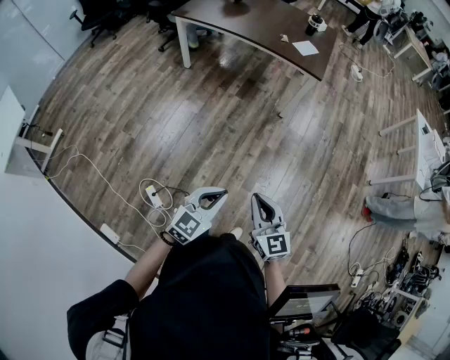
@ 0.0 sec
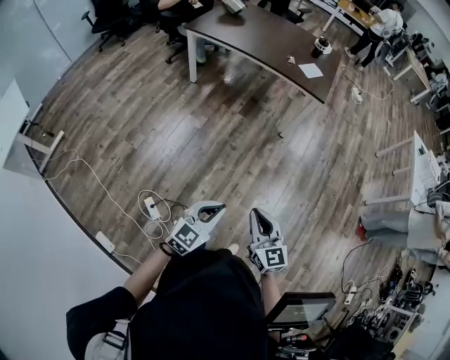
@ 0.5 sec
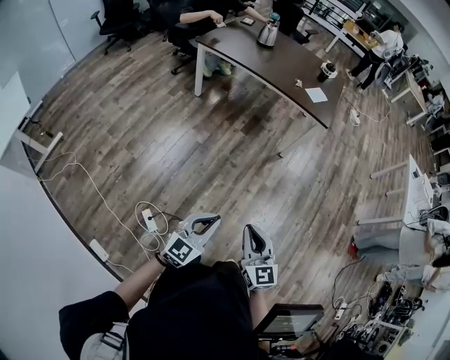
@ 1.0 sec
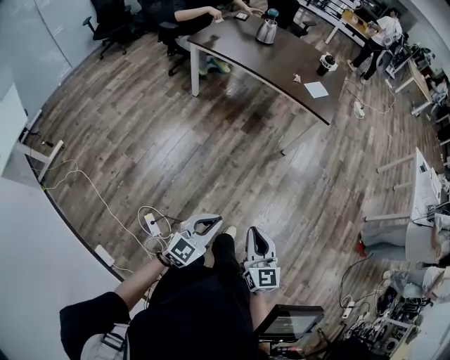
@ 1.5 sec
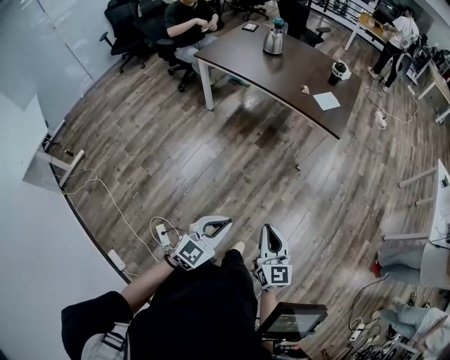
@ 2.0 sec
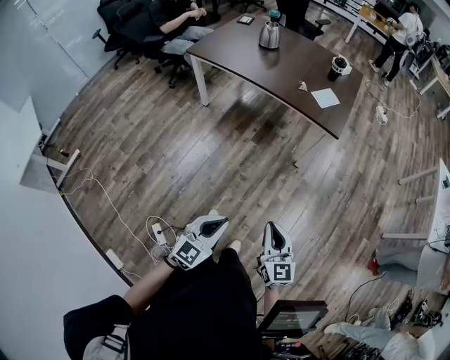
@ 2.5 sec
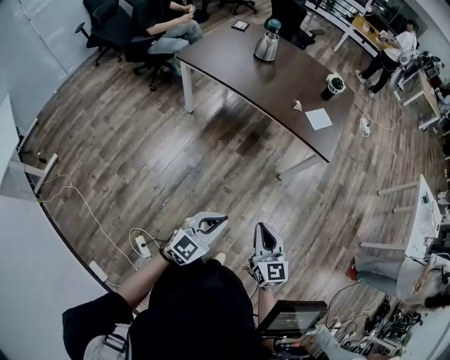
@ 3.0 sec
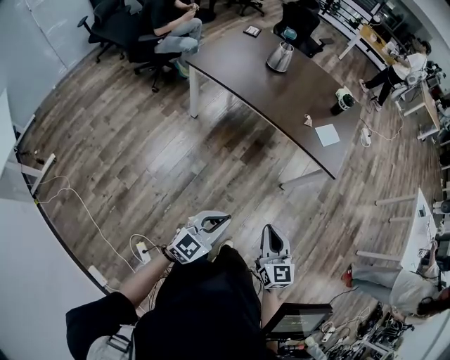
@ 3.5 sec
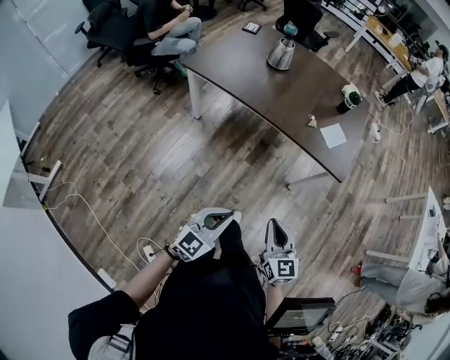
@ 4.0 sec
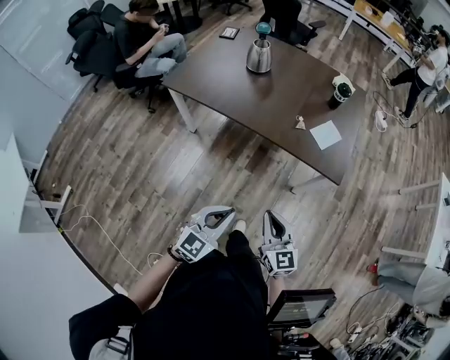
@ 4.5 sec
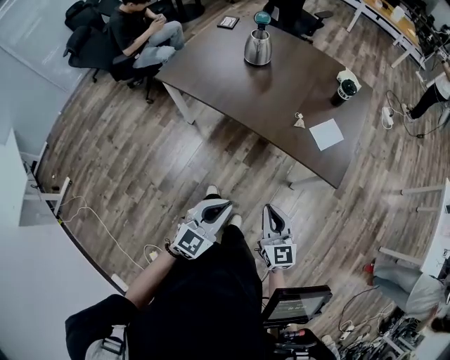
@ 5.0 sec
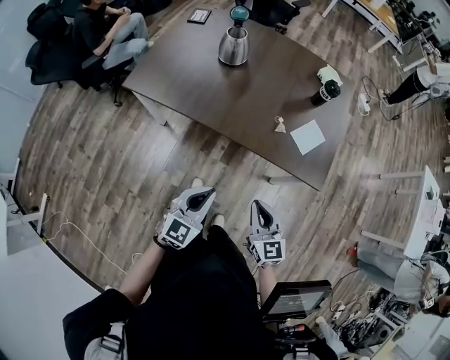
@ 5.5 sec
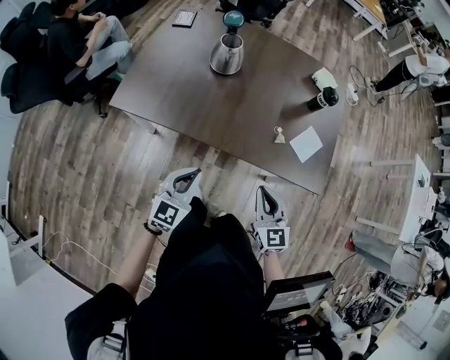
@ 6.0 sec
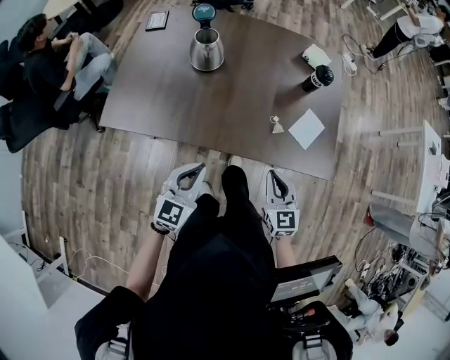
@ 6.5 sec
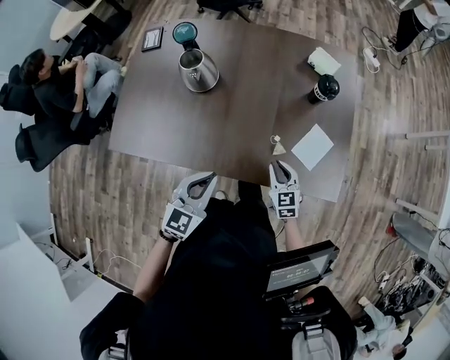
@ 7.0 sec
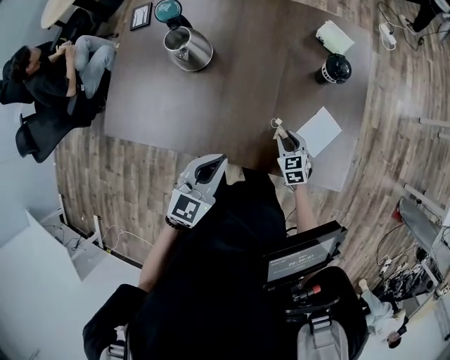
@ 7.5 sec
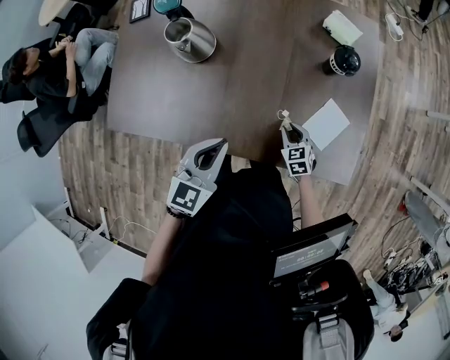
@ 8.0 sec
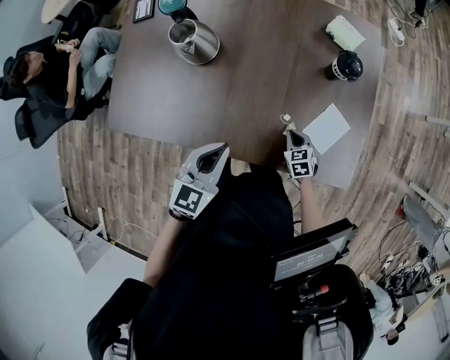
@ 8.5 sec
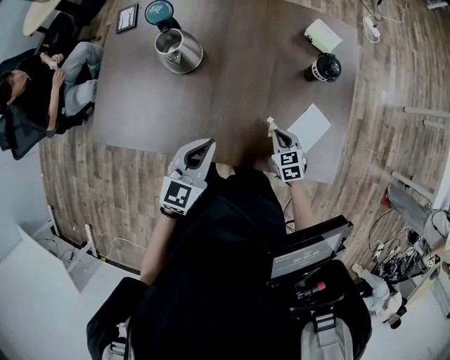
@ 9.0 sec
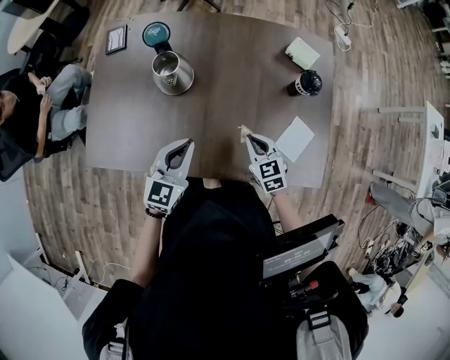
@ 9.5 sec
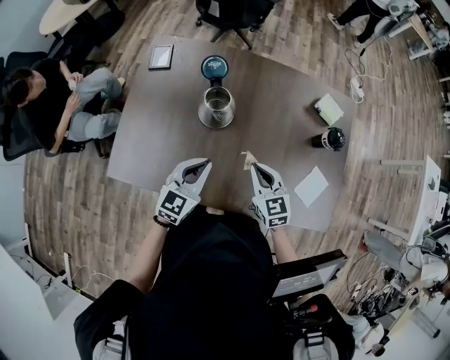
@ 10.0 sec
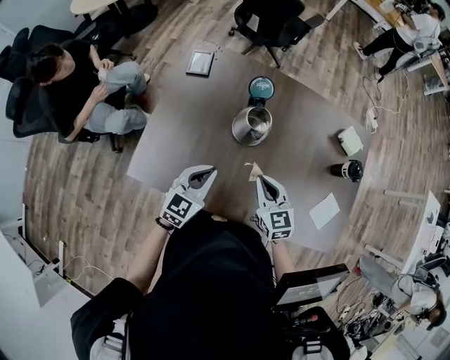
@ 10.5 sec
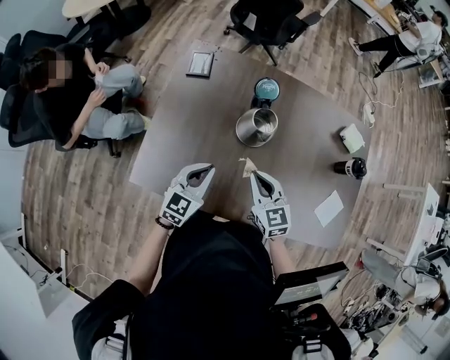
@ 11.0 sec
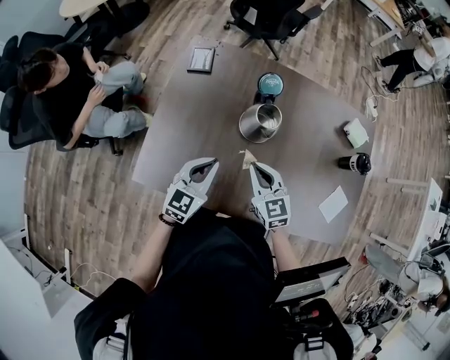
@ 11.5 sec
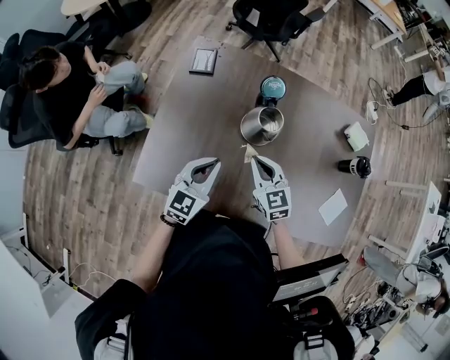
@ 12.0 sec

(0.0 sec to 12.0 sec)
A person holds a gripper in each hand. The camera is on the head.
0.0 sec - 2.0 sec: Both grippers move forward, approximately 15 cm.
2.0 sec - 4.0 sec: The grippers both shift forward and to the left by some 35 cm.
4.0 sec - 6.0 sec: The two grippers go about 40 cm forward.
6.0 sec - 8.0 sec: The right gripper is displaced downward, forward and to the right by about 40 cm, tips its fingers downward by approximately 30 degrees, and opens; the left gripper goes approximately 30 cm forward and to the right.
8.0 sec - 10.0 sec: The right gripper heads upward and to the left, covering some 30 cm, and closes up, while the left gripper travels to the left and forward by some 20 cm.
10.0 sec - 12.0 sec: The two grippers go some 20 cm to the left.

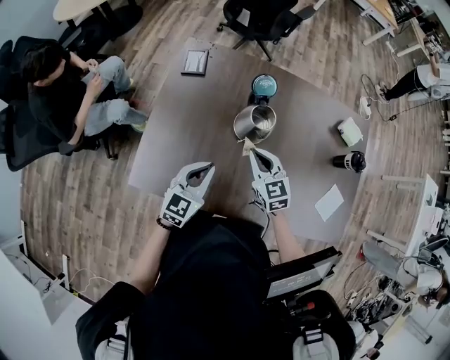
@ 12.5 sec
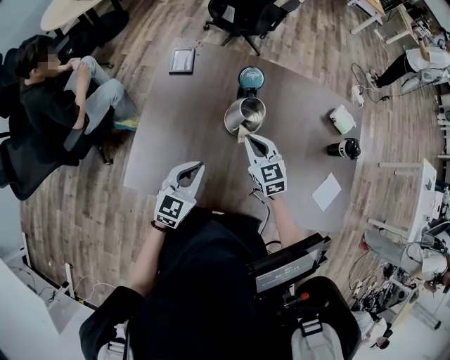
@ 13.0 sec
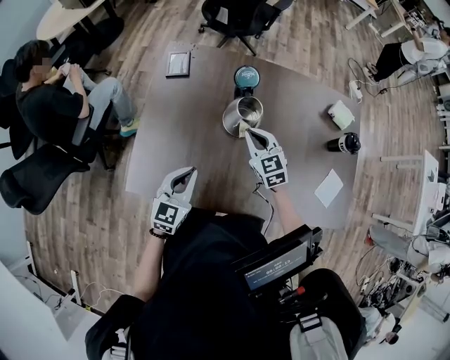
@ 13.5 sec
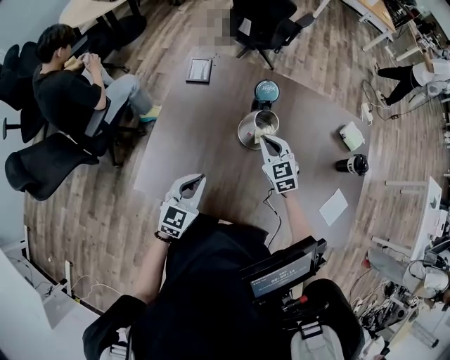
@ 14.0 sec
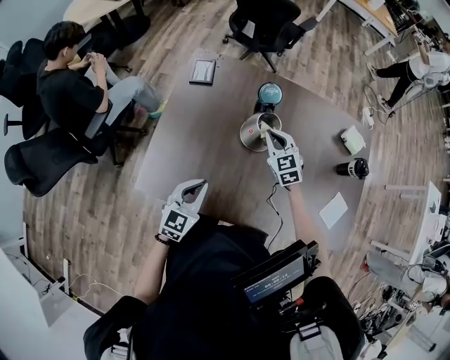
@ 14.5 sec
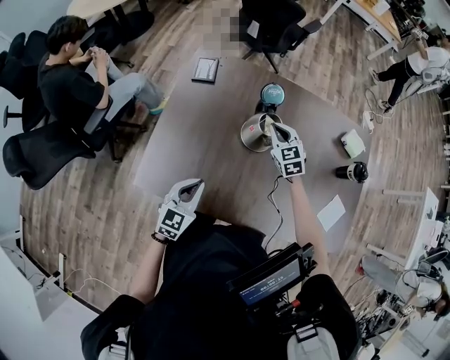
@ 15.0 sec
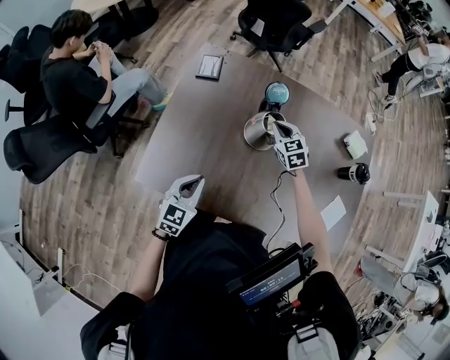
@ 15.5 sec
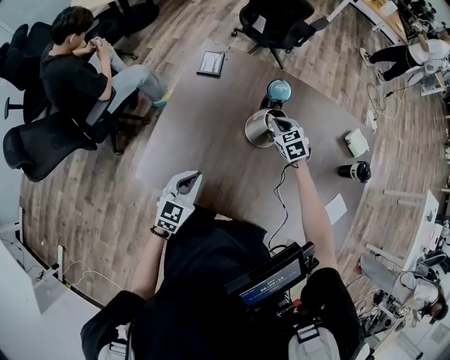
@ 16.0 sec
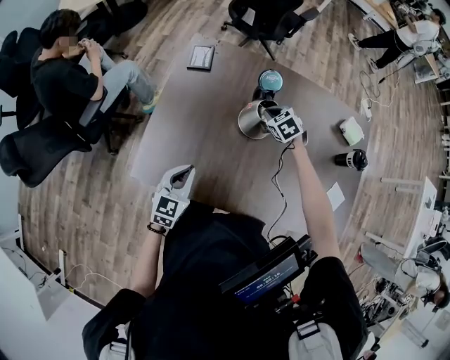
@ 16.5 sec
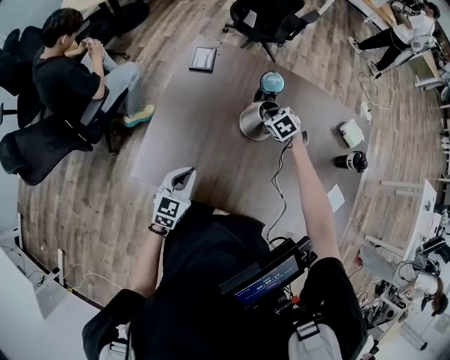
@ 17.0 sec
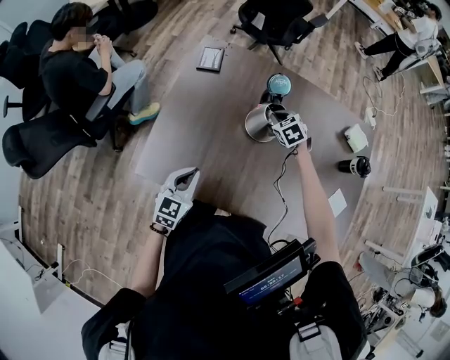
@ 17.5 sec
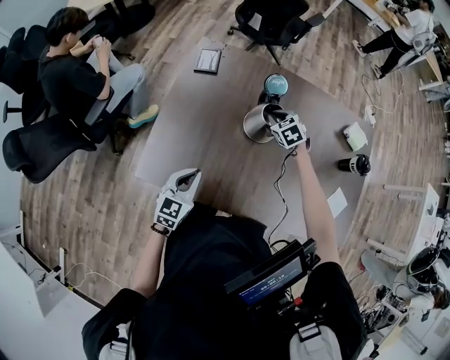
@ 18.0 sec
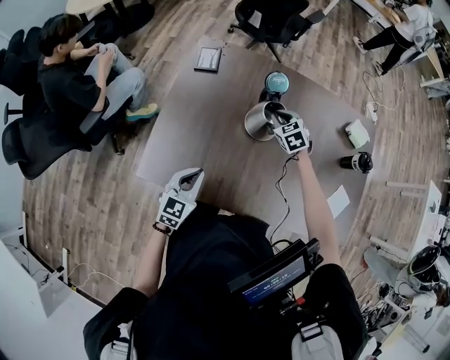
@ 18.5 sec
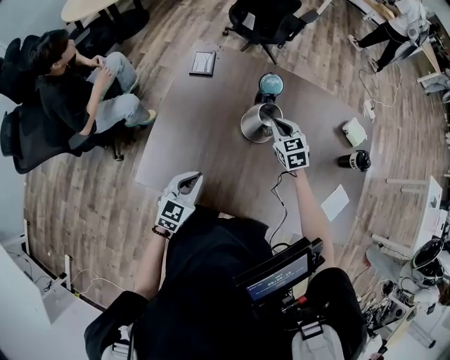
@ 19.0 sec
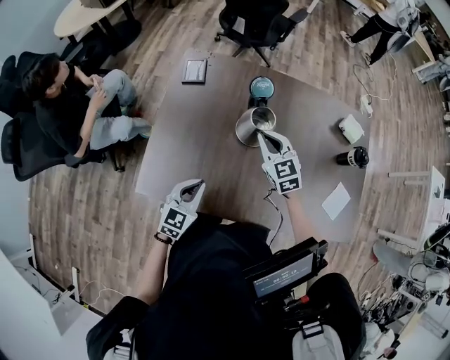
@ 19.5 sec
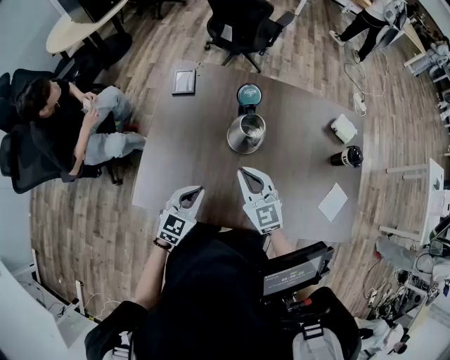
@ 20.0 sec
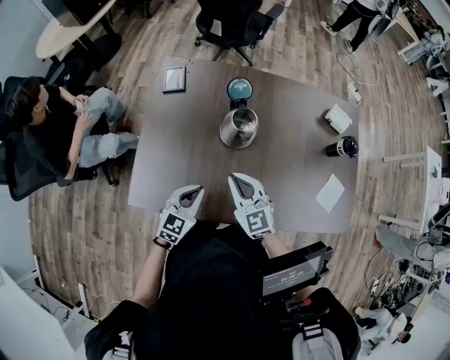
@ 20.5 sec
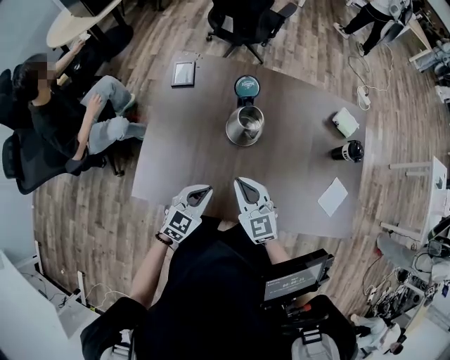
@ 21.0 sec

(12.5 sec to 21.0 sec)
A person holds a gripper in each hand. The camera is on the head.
12.5 sec - 14.5 sec: The left gripper changes place by approximately 5 cm; the right gripper goes about 10 cm forward.
14.5 sec - 16.5 sec: The right gripper moves downward and forward, about 10 cm, and turns by approximately 30 degrees.
16.5 sec - 19.0 sec: The right gripper heads upward, covering some 5 cm, and changes its angle by approximately 20 degrees.
19.0 sec - 21.0 sec: The left gripper goes roughly 10 cm to the right, while the right gripper shifts some 20 cm backward.

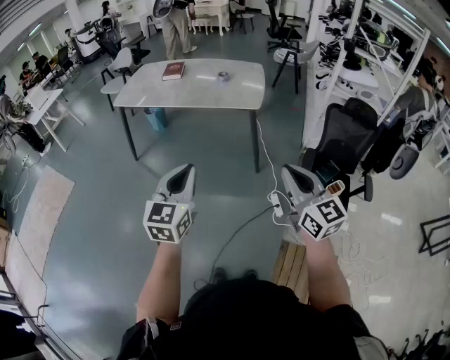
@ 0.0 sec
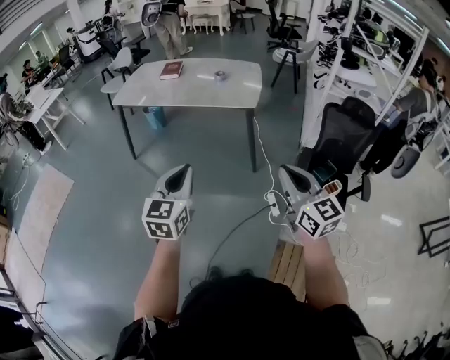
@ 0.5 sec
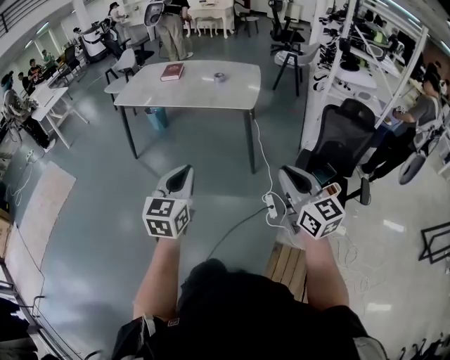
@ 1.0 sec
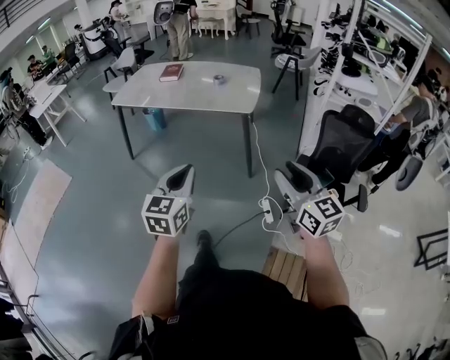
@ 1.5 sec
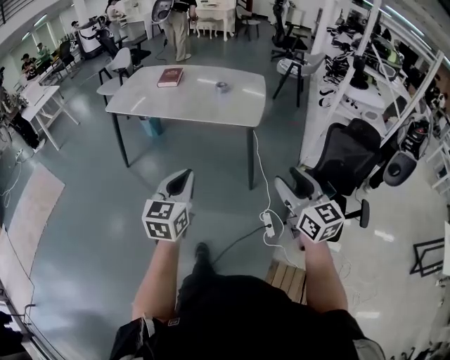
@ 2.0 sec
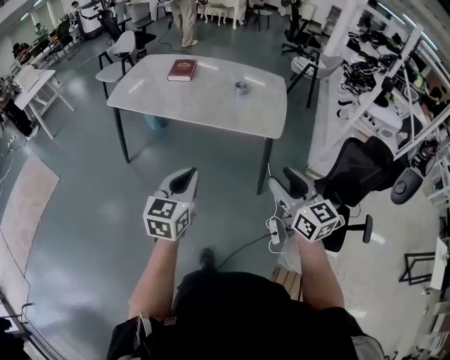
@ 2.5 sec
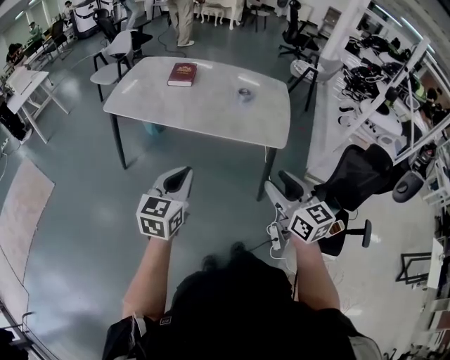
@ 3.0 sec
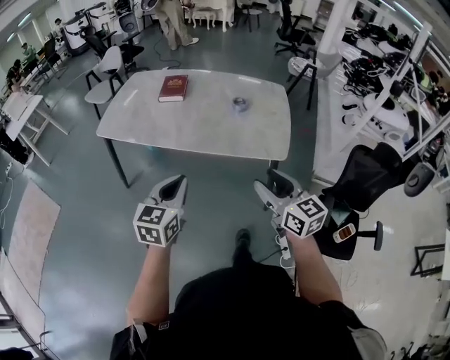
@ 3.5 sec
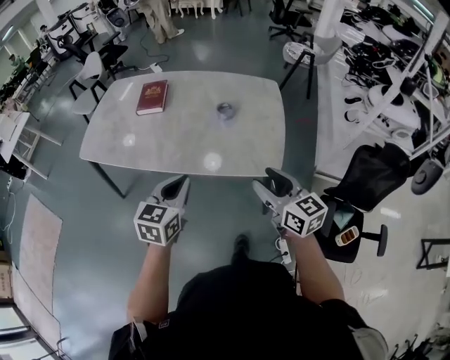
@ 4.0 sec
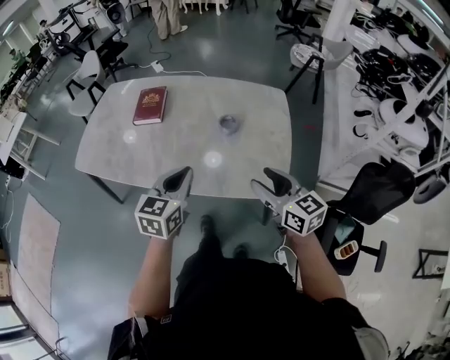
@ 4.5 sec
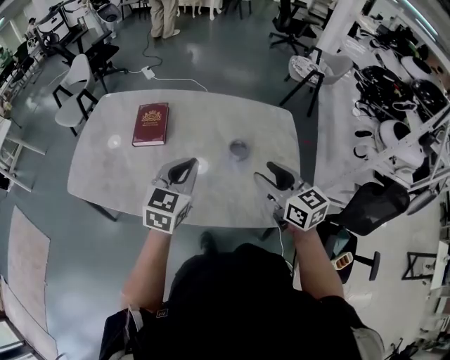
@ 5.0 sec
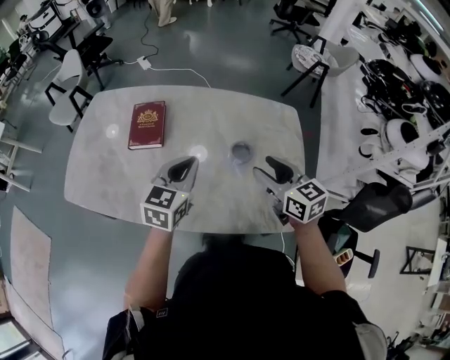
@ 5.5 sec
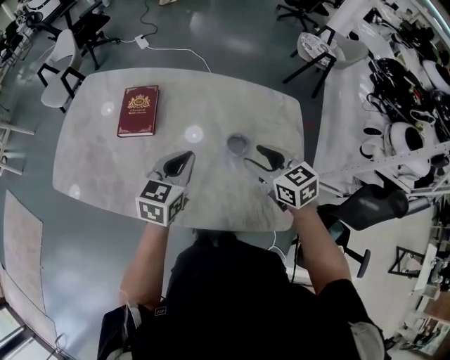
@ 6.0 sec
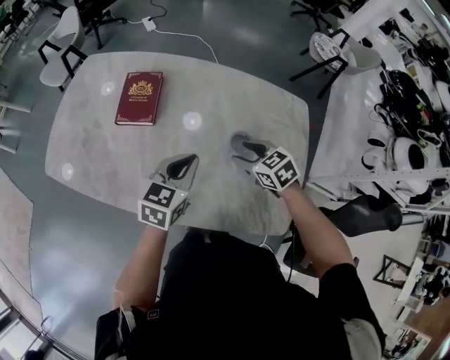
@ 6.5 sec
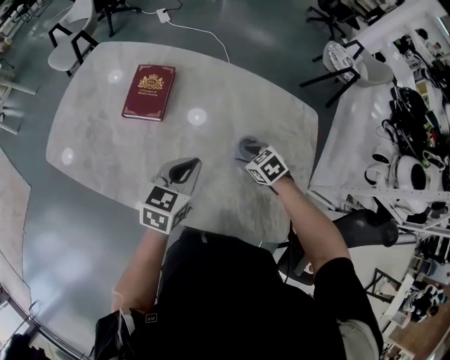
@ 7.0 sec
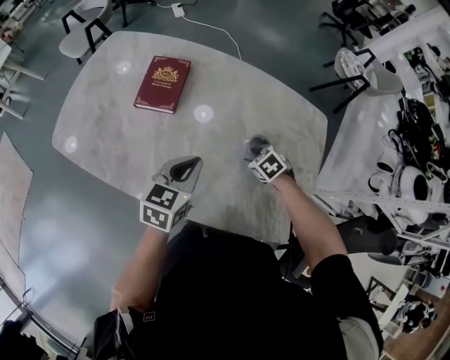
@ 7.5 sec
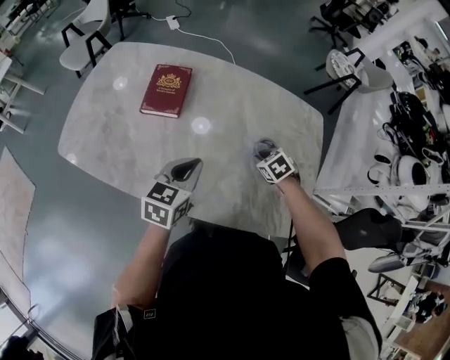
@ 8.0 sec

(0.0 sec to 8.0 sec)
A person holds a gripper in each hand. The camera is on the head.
0.0 sec - 2.0 sec: The two grippers go some 15 cm forward. The right gripper opens up.
2.0 sec - 4.0 sec: The pair of grippers is taken forward, some 50 cm.
4.0 sec - 6.0 sec: The two grippers travel together, forward, about 40 cm. The right gripper swivels approximately 20 degrees.
6.0 sec - 8.0 sec: The left gripper goes approximately 10 cm to the left. Meanwhile the right gripper heads downward, covering roughly 20 cm, tips its fingers downward by approximately 40 degrees, and closes up.
